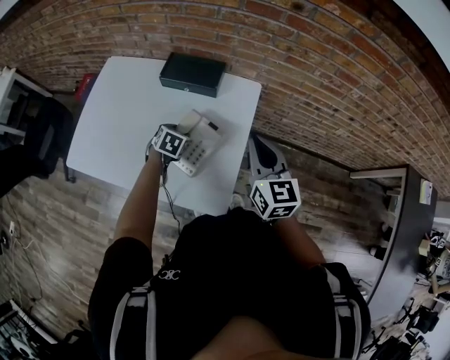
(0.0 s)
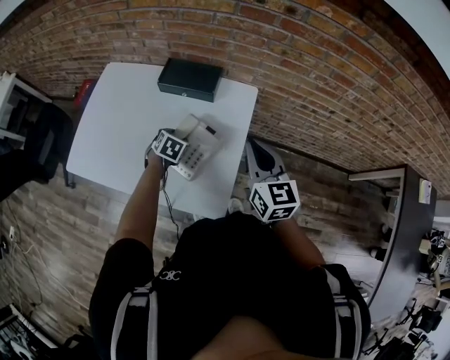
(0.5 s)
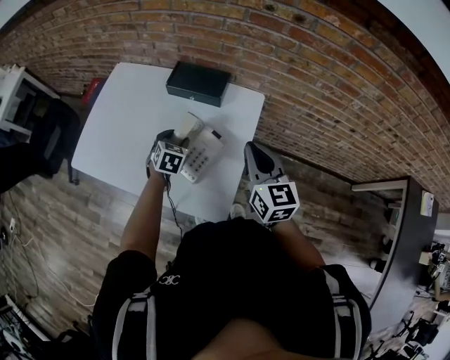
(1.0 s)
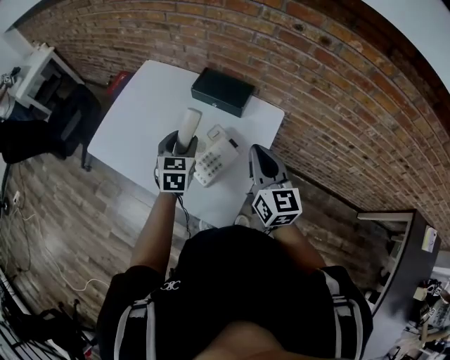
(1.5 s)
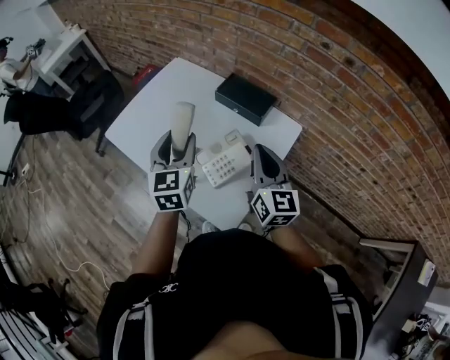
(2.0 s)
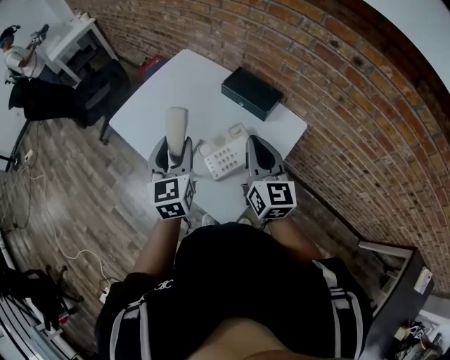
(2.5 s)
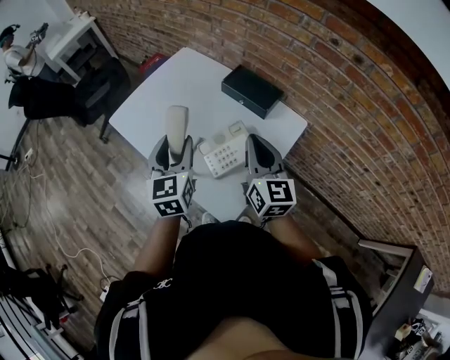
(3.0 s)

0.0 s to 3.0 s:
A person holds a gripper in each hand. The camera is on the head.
0.0 to 1.5 s: The left gripper travels upward by roughly 15 cm, and changes its angle by about 40 degrees.
1.5 to 3.0 s: The right gripper shifts roughly 5 cm to the left. The left gripper travels upward, backward and to the left by about 15 cm, and rotates some 30 degrees.

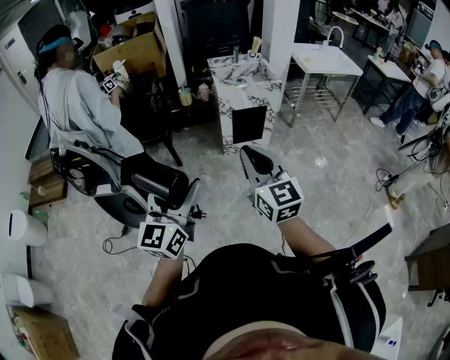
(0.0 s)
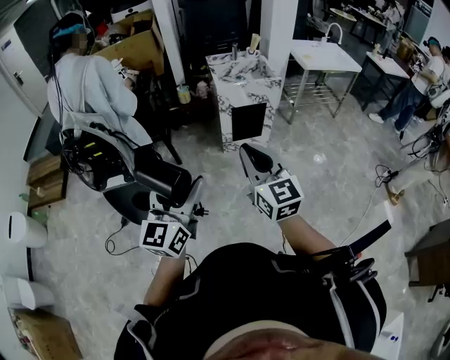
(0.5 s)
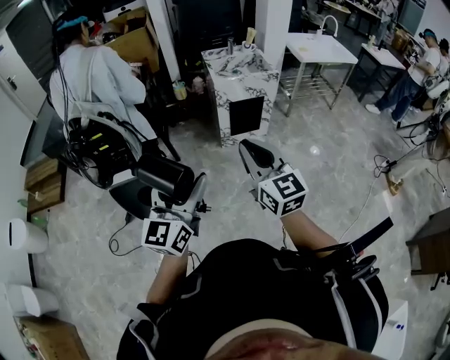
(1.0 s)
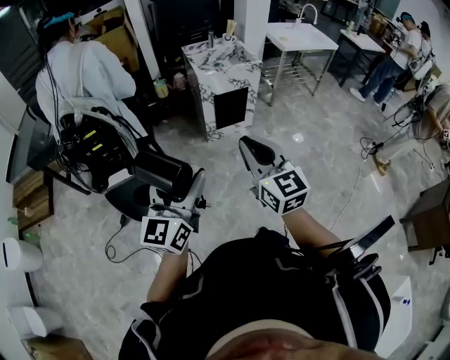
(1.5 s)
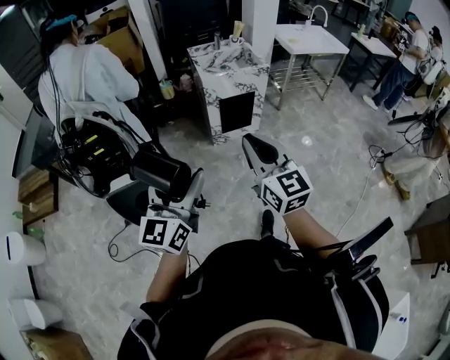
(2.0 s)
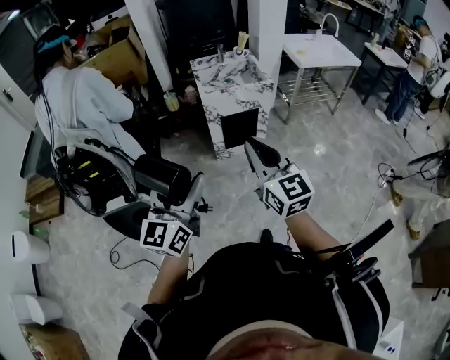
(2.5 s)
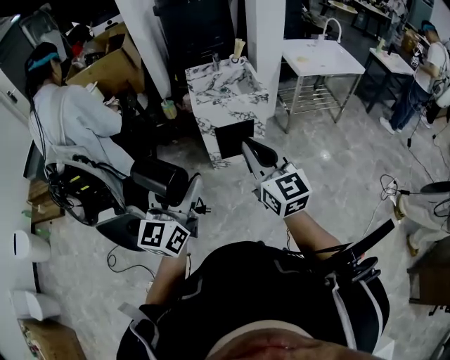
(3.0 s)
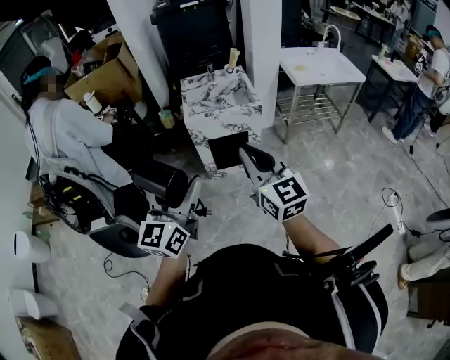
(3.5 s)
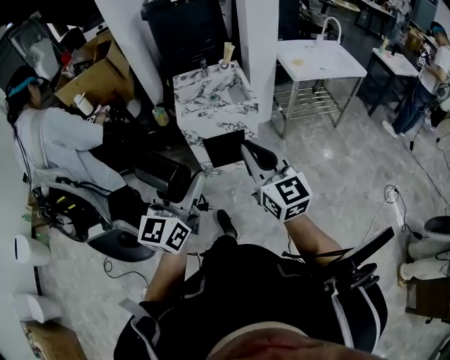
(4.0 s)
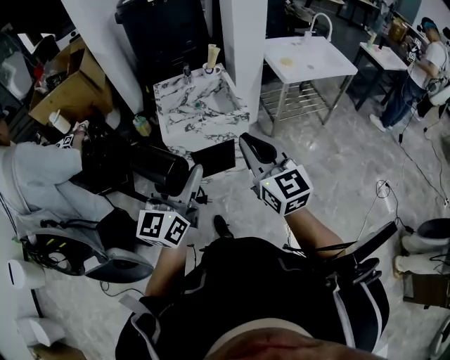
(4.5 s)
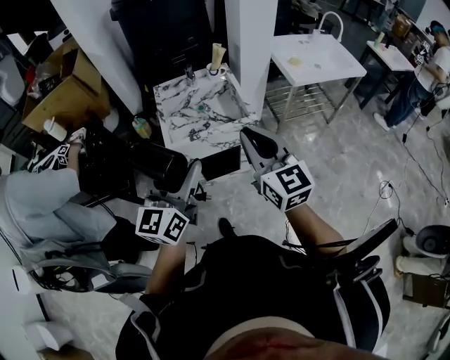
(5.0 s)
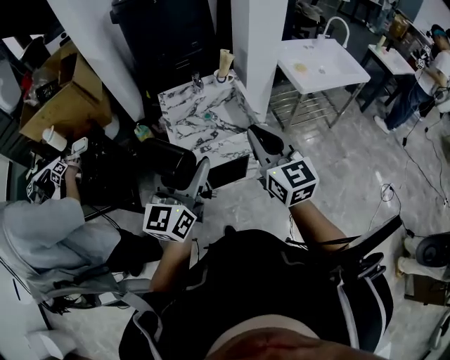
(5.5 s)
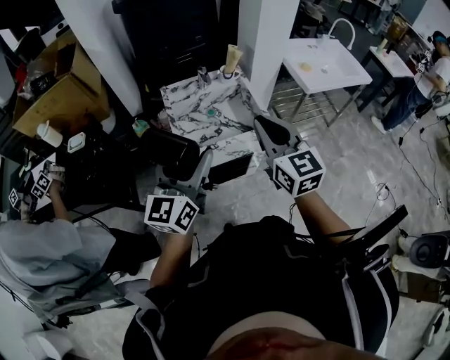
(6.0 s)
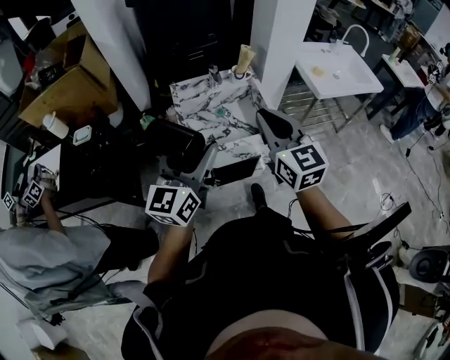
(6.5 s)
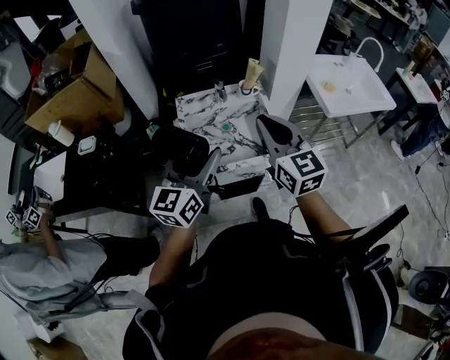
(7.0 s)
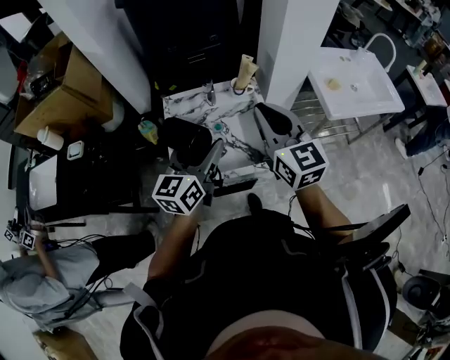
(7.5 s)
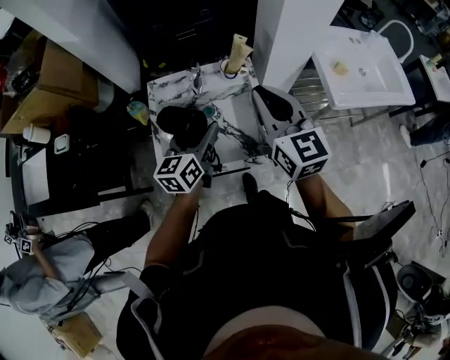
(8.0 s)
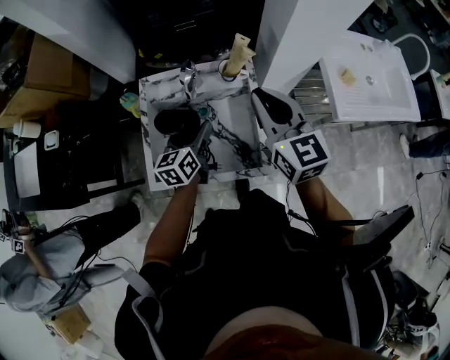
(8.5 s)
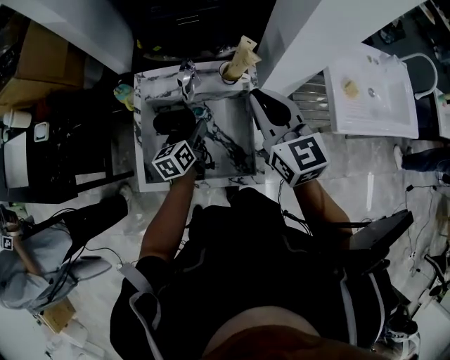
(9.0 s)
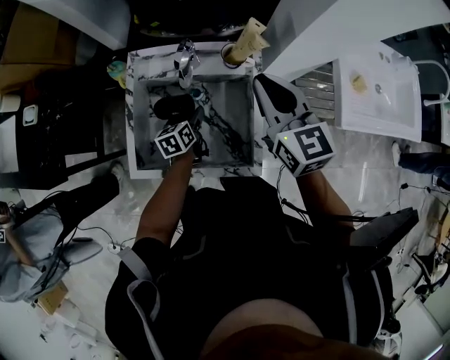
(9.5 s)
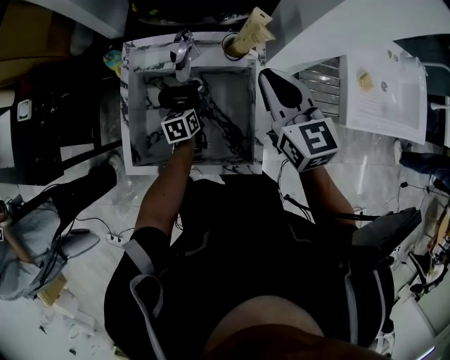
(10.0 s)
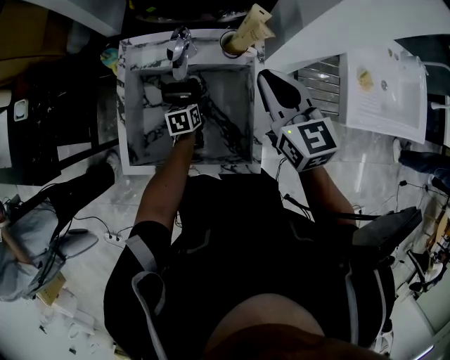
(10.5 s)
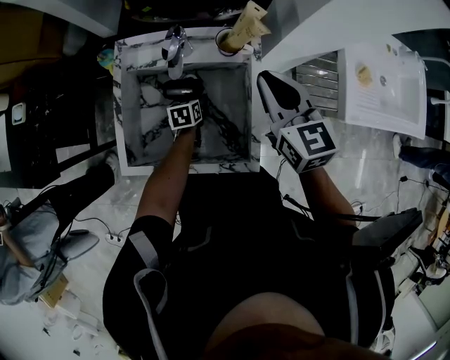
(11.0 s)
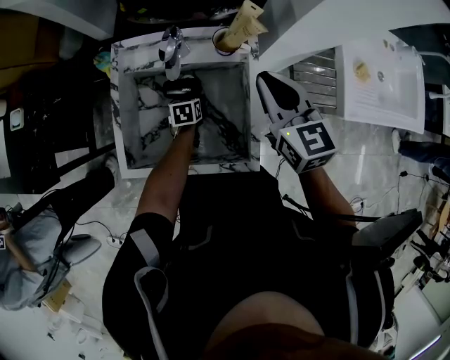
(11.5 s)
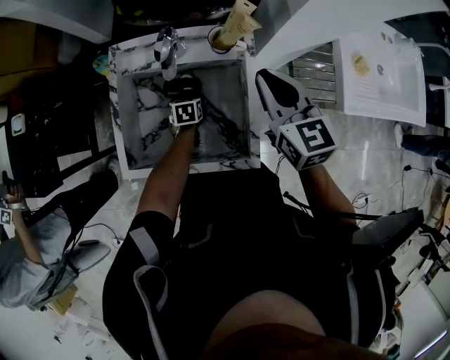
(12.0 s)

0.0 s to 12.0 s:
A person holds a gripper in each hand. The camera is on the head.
0.0 to 2.0 s: The left gripper heads forward, covering some 5 cm.
2.0 to 4.0 s: The two grippers go some 35 cm to the right and forward.
4.0 to 6.0 s: The two grippers go about 35 cm forward.
6.0 to 8.0 s: The left gripper moves forward, downward and to the right, approximately 35 cm, and swivels some 30 degrees. Meanwhile the right gripper is displaced forward by about 25 cm.
8.0 to 10.0 s: The right gripper goes approximately 15 cm forward and downward; the left gripper heads downward, covering approximately 30 cm, and tilts its fingers roughly 30 degrees downward.
10.0 to 12.0 s: The left gripper travels downward by approximately 5 cm, and turns by about 20 degrees.

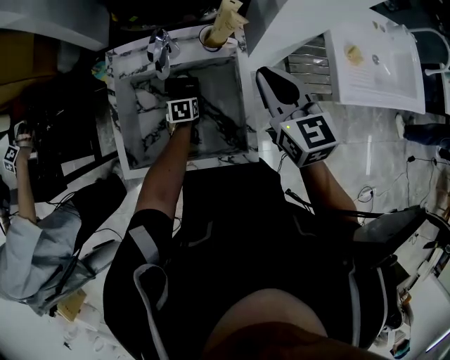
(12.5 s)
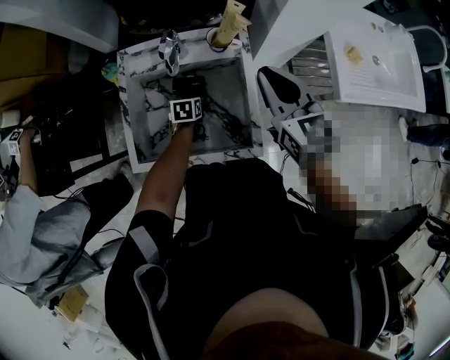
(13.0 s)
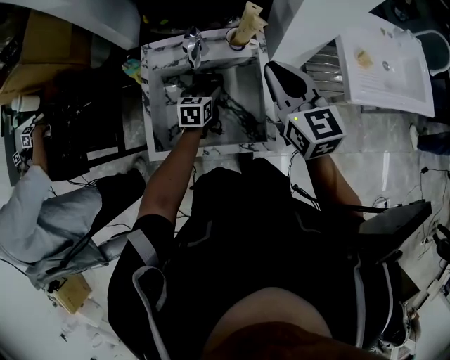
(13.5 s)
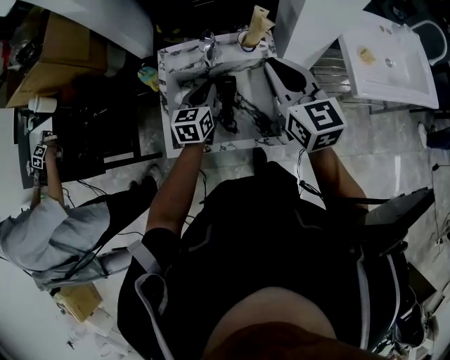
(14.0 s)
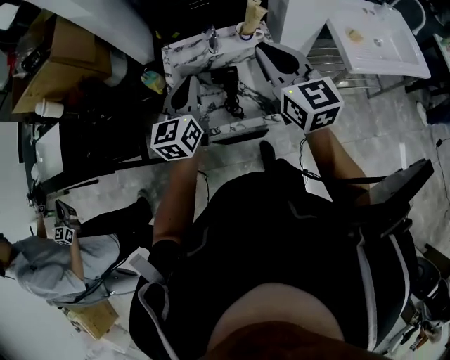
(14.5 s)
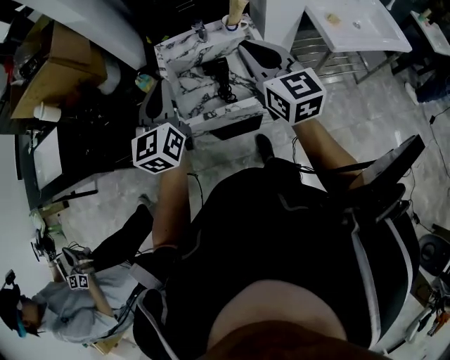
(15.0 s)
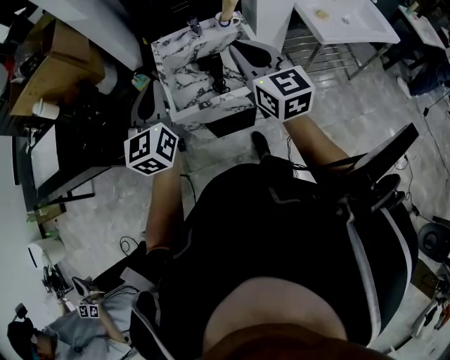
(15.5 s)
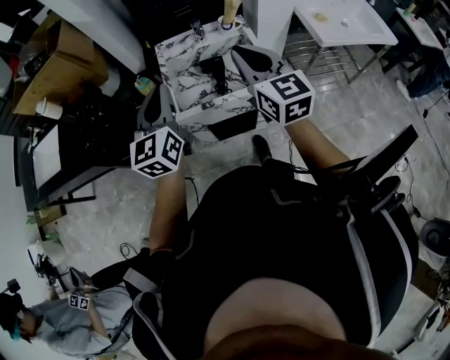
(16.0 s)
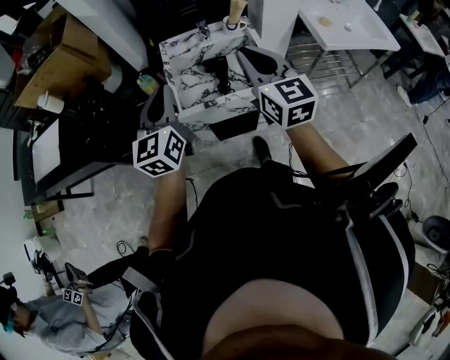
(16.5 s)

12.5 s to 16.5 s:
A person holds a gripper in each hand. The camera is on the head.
12.5 to 14.5 s: The right gripper shifts roughly 20 cm upward, backward and to the left. Meanwhile the left gripper travels upward by some 40 cm, points its fingers approximately 50 degrees further upward, and closes.
14.5 to 16.5 s: The left gripper goes about 20 cm backward, to the left and upward, while the right gripper heads backward and to the left, covering approximately 15 cm.

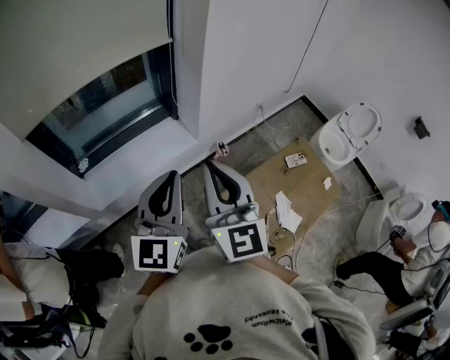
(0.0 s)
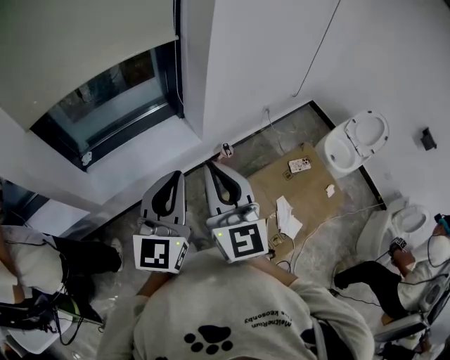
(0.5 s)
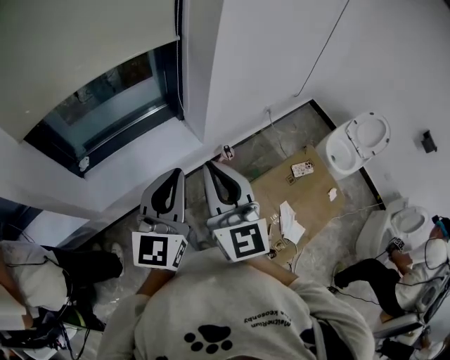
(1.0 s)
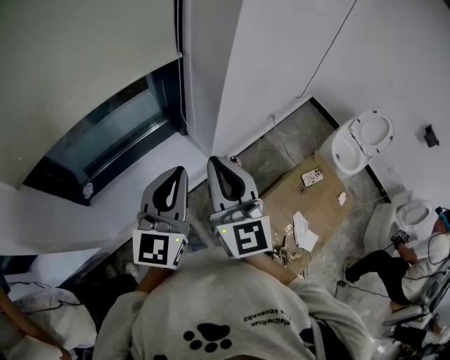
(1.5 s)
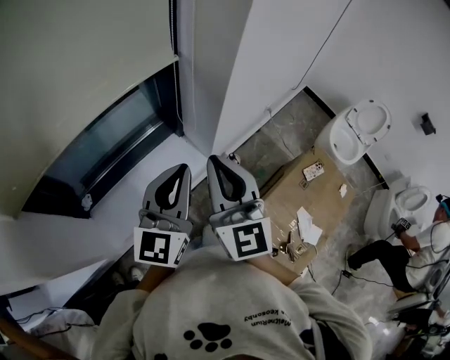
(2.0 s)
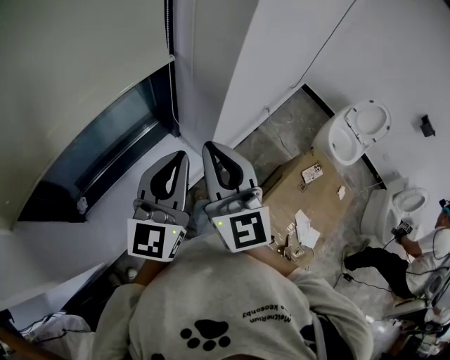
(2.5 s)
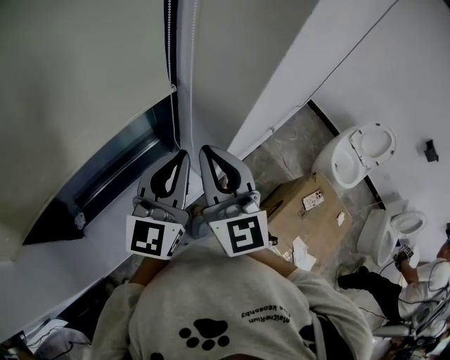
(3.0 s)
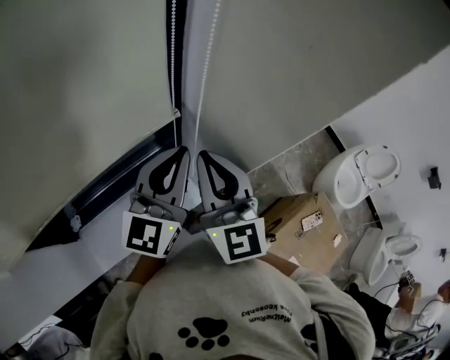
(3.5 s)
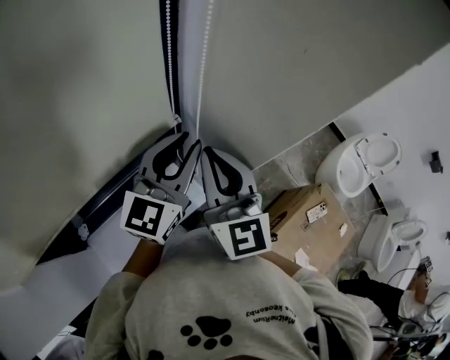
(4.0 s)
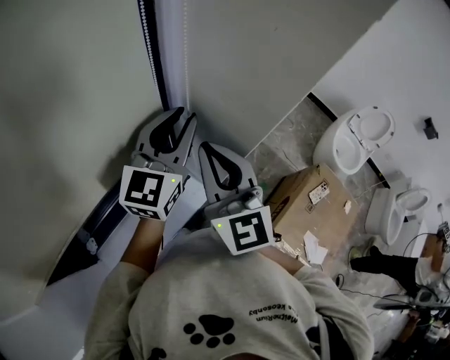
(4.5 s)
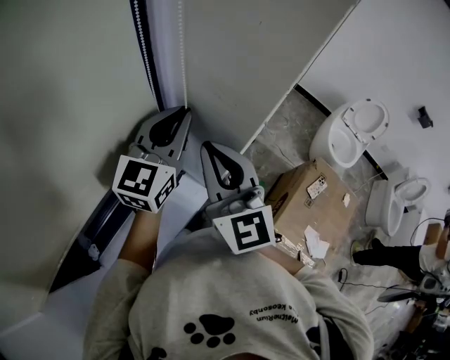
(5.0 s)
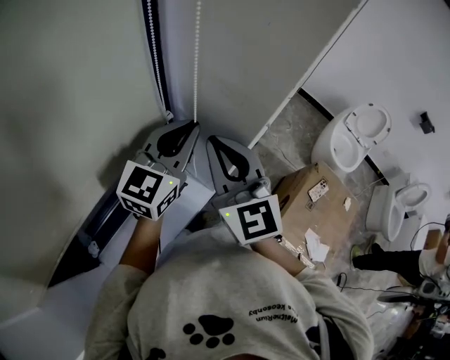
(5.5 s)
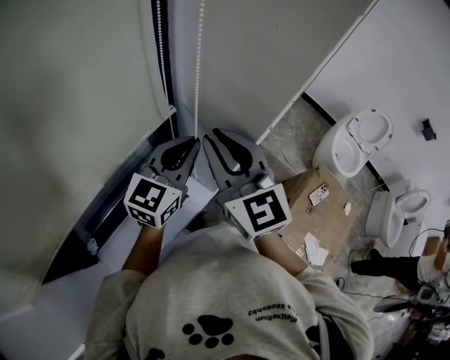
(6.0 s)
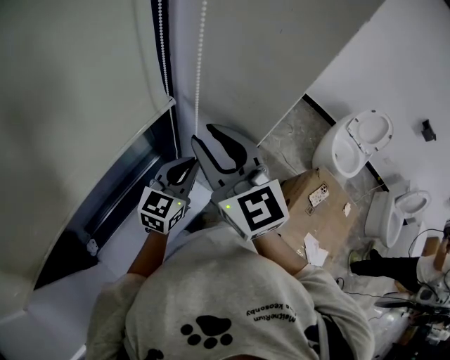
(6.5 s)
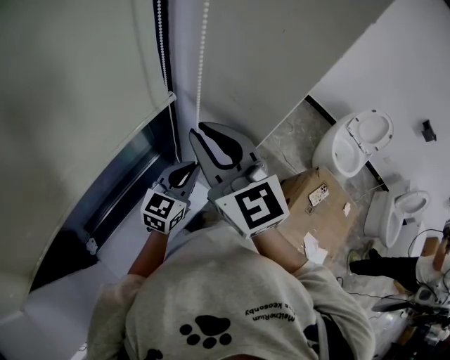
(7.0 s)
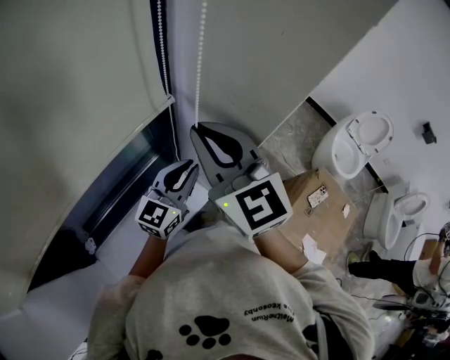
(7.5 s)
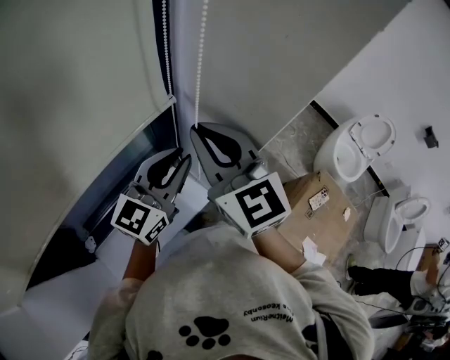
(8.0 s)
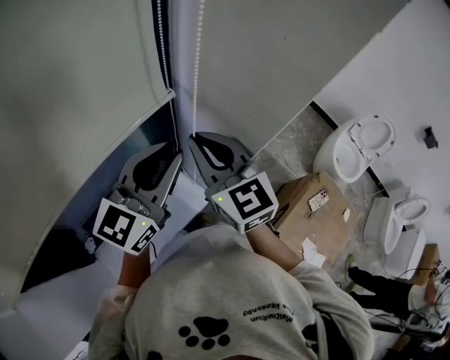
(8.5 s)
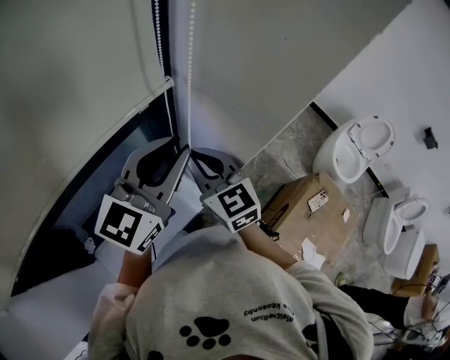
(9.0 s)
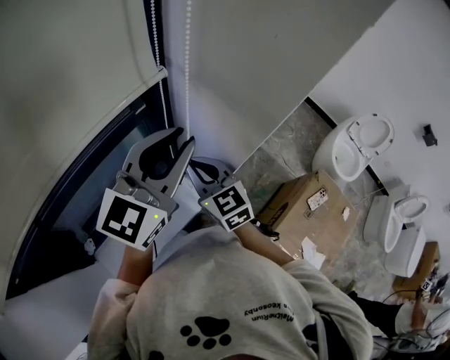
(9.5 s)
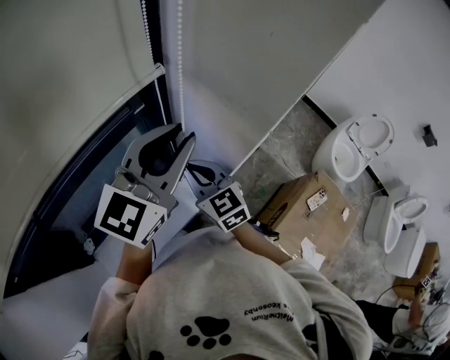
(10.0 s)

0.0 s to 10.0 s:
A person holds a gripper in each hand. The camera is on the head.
0.0 to 2.0 s: The grippers both shift forward by about 25 cm.
2.0 to 4.0 s: The grippers both shift forward by some 25 cm. The left gripper opens its fingers.
4.0 to 6.0 s: The grippers make only small movements.
6.0 to 8.0 s: The left gripper goes downward and returns, roughly 10 cm each way.
8.0 to 10.0 s: The right gripper goes some 20 cm downward. The left gripper travels upward by roughly 10 cm.
